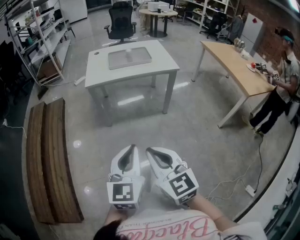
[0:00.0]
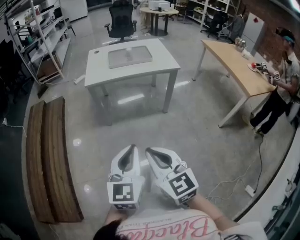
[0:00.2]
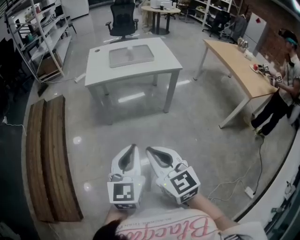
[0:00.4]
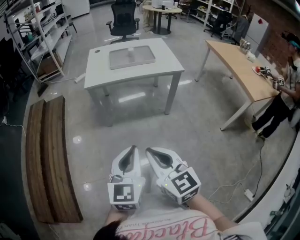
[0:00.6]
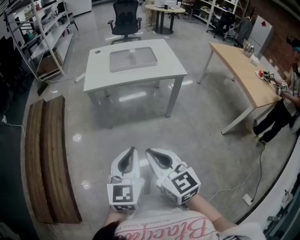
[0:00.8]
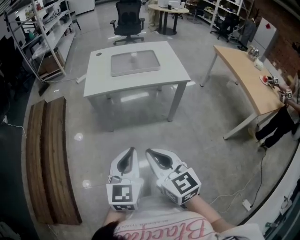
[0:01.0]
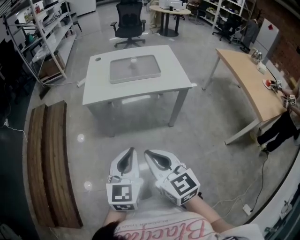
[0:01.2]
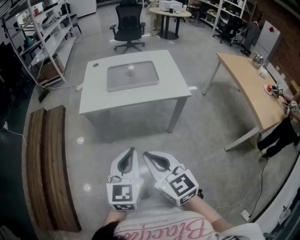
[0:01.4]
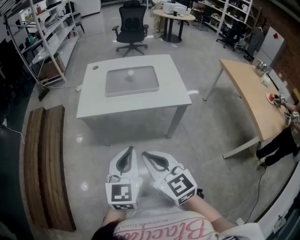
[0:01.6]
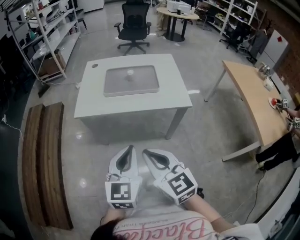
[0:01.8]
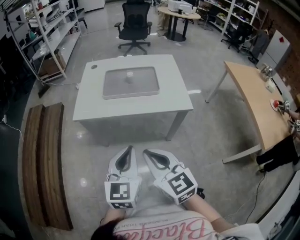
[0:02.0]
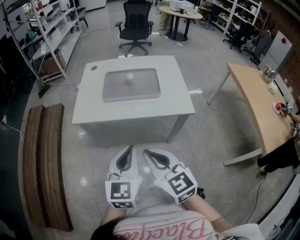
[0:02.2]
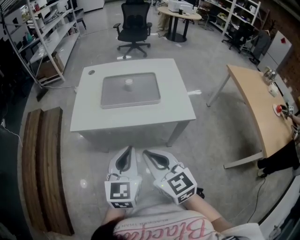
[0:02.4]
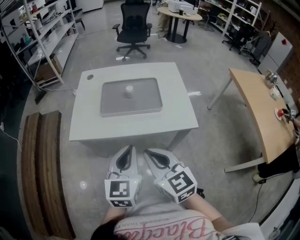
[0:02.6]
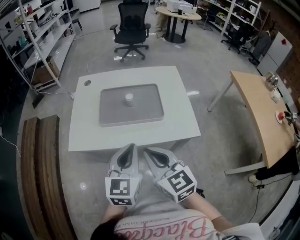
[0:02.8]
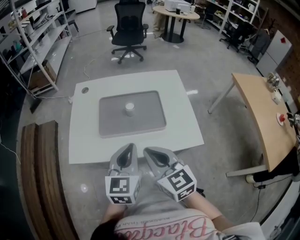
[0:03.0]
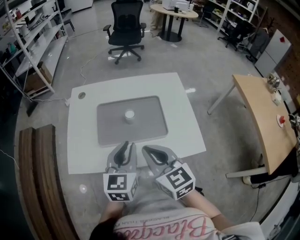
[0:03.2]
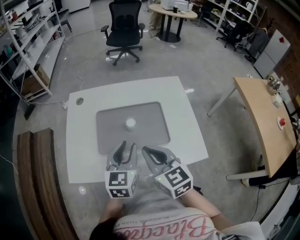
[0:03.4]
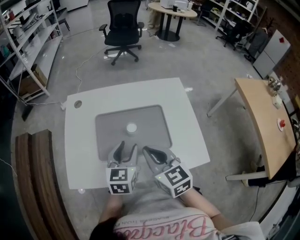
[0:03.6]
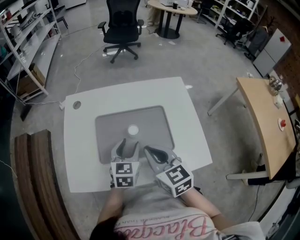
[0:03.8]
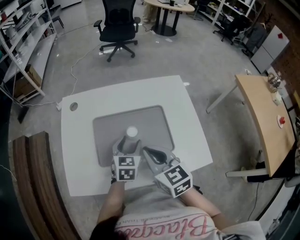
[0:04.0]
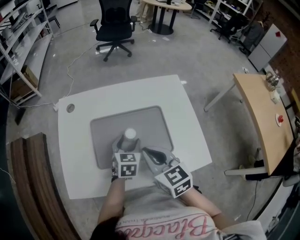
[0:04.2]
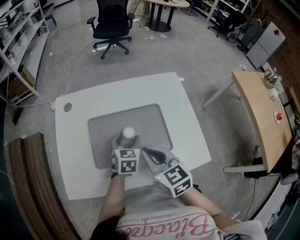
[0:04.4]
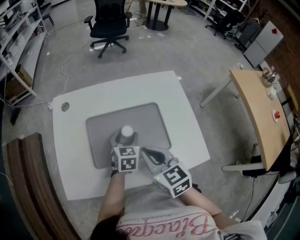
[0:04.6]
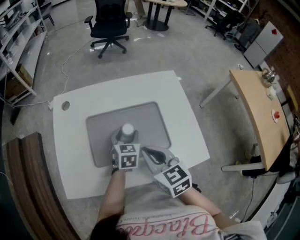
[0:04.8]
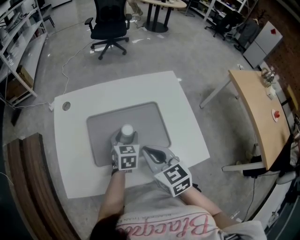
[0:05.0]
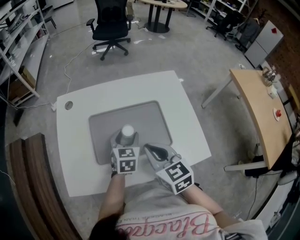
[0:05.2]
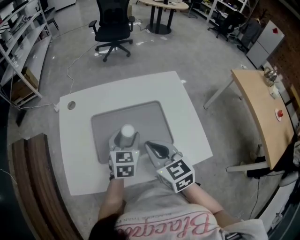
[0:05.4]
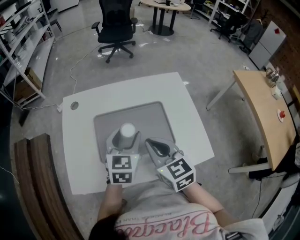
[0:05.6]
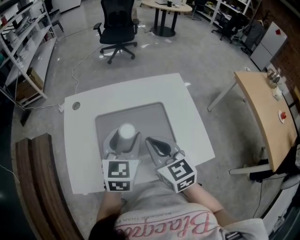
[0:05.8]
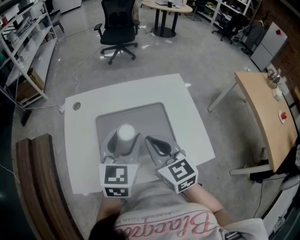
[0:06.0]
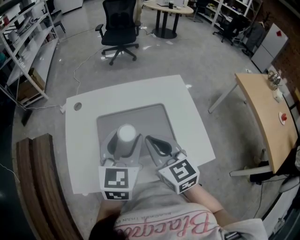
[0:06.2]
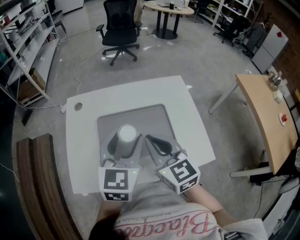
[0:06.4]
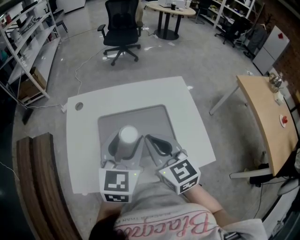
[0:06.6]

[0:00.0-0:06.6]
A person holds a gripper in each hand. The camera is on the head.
0:00.0 to 0:01.6: The two grippers go approximately 20 cm forward.
0:01.6 to 0:03.2: Both grippers move forward, roughly 30 cm.
0:03.2 to 0:05.0: The left gripper goes approximately 20 cm downward and forward, and opens, while the right gripper goes some 10 cm forward and downward.
0:05.0 to 0:06.6: The right gripper heads upward, covering approximately 10 cm. The left gripper goes about 20 cm upward, and rotates about 20 degrees.

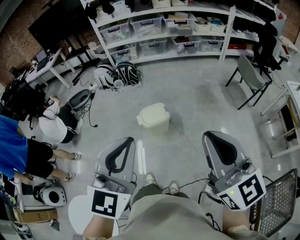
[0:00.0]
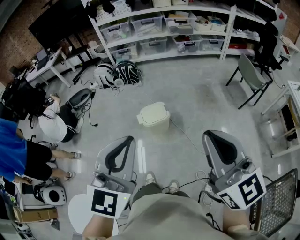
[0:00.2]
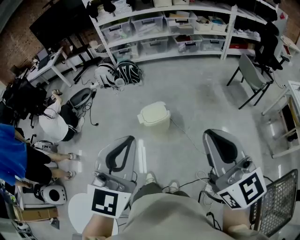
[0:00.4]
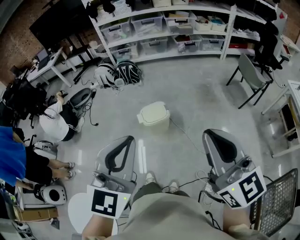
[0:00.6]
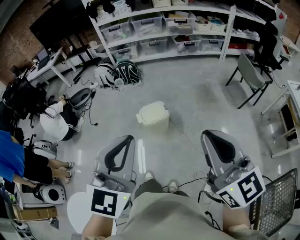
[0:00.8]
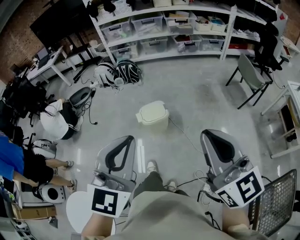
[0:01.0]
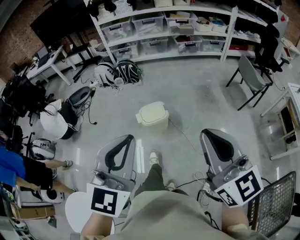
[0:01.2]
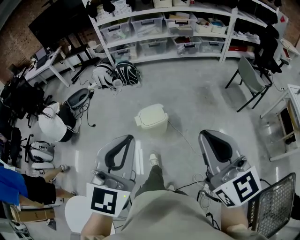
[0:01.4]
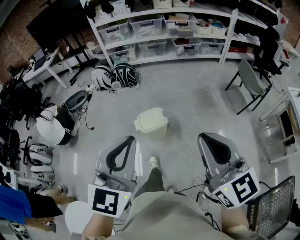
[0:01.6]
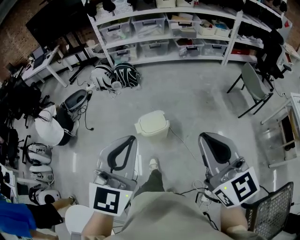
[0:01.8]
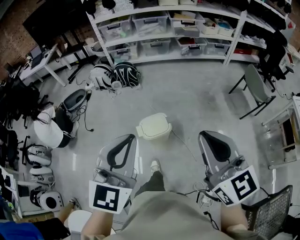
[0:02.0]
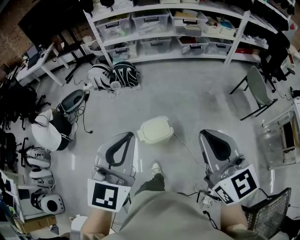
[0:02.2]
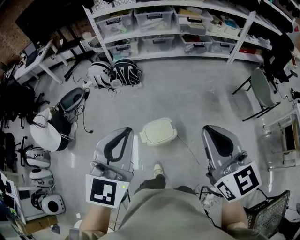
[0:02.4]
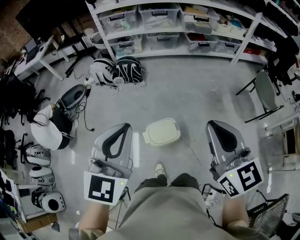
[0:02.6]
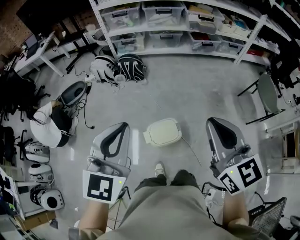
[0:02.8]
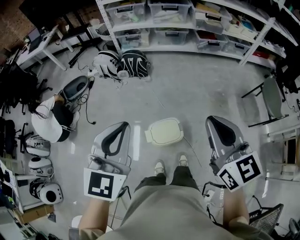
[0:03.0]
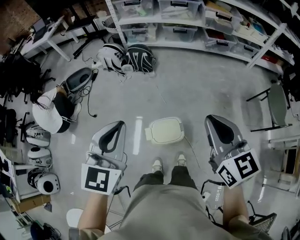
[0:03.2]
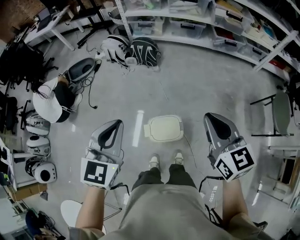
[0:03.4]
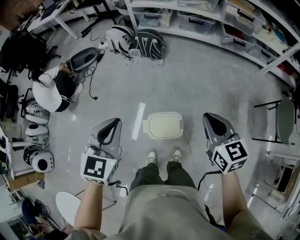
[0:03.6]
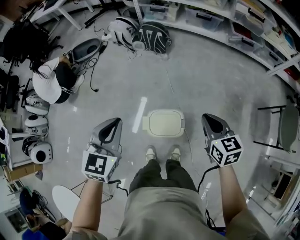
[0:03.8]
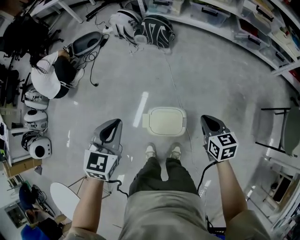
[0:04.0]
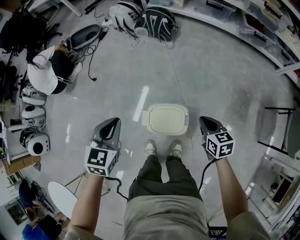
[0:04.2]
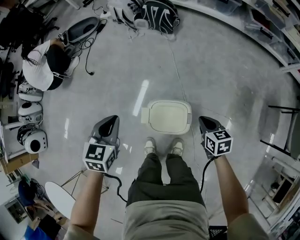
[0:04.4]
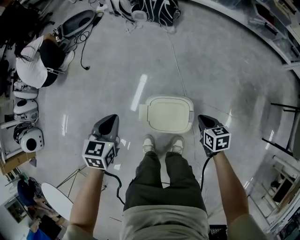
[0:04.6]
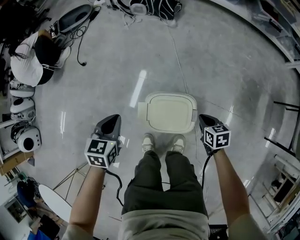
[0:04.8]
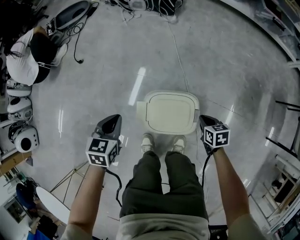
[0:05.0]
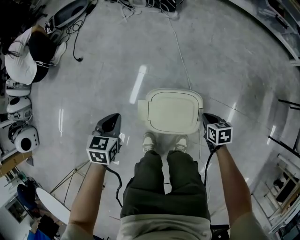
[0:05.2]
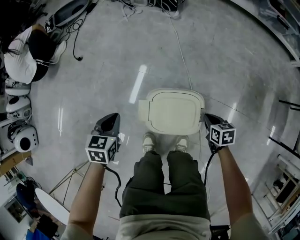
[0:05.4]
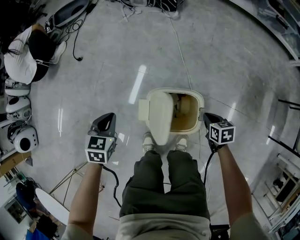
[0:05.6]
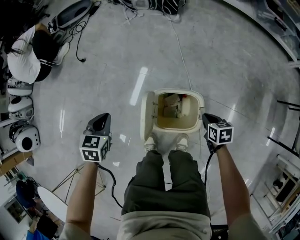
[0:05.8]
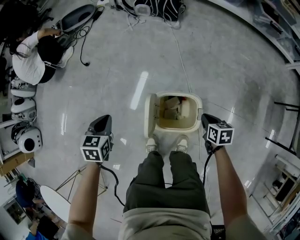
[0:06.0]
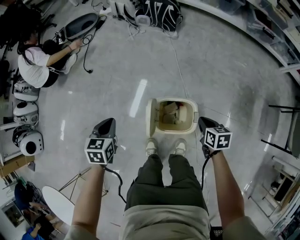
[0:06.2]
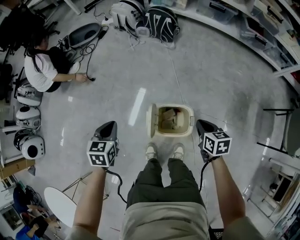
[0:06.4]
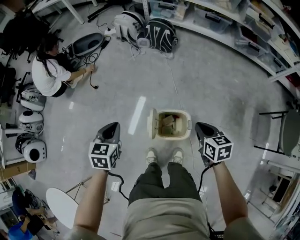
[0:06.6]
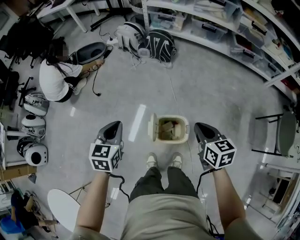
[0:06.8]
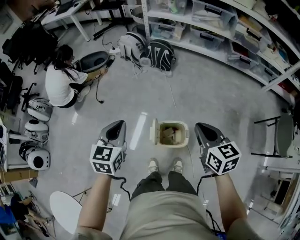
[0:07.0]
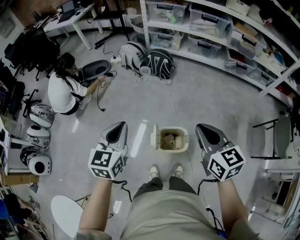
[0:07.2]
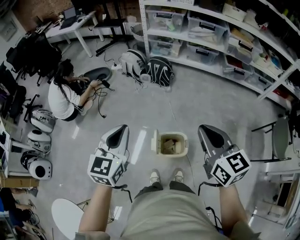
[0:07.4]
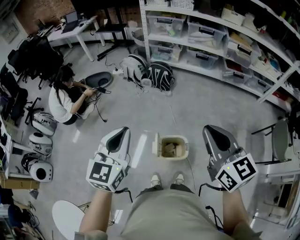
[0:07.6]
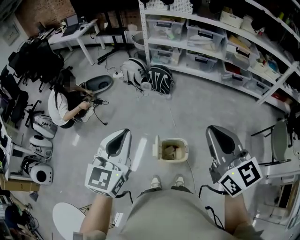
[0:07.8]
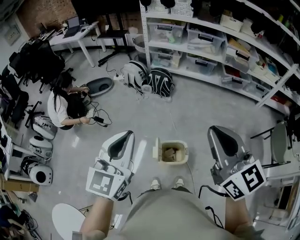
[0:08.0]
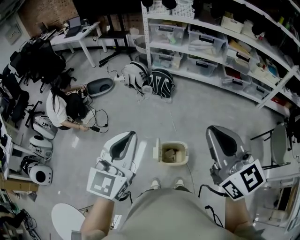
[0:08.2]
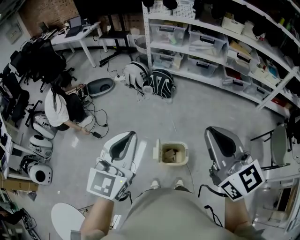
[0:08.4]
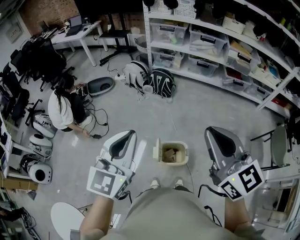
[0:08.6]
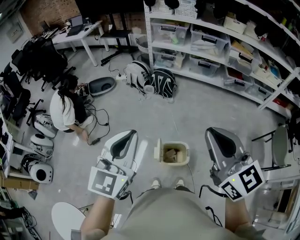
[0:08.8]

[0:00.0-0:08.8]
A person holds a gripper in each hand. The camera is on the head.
0:00.0 to 0:01.4: The grippers move only a little.
0:01.4 to 0:03.0: Both grippers travel together forward, some 35 cm.
0:03.0 to 0:04.4: The grippers both shift downward by roughly 50 cm. The right gripper angles its fingers downward, by some 40 degrees; the left gripper changes its angle by about 40 degrees.
0:04.4 to 0:05.8: The right gripper heads downward, covering approximately 20 cm; the left gripper shifts some 20 cm downward and to the left.
0:05.8 to 0:07.4: Both grippers travel together upward, some 60 cm. The left gripper angles its fingers upward, by roughly 40 degrees; the right gripper tips its fingers upward by approximately 50 degrees.
0:07.4 to 0:08.8: Both grippers move upward, about 10 cm.

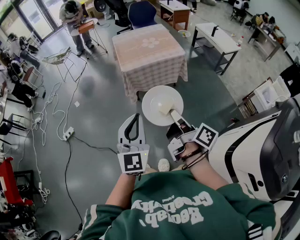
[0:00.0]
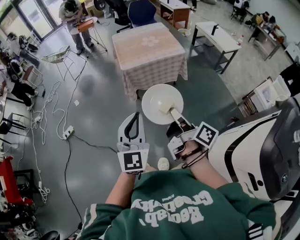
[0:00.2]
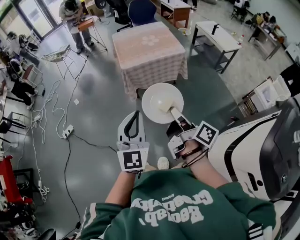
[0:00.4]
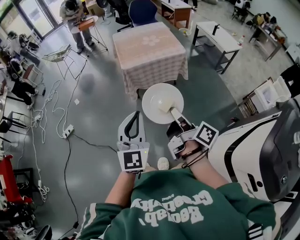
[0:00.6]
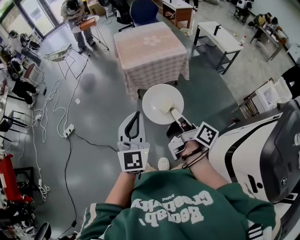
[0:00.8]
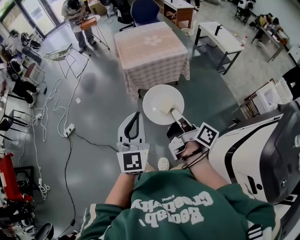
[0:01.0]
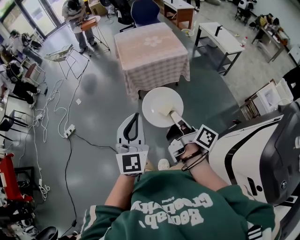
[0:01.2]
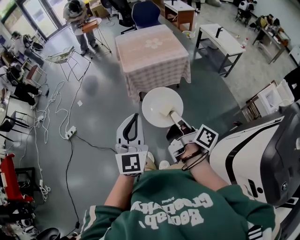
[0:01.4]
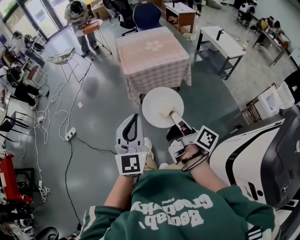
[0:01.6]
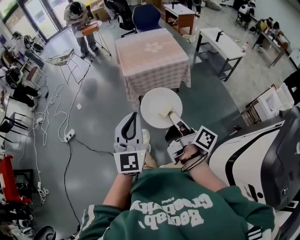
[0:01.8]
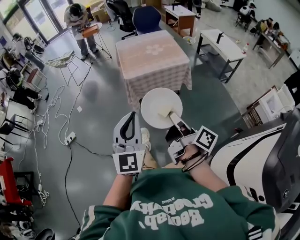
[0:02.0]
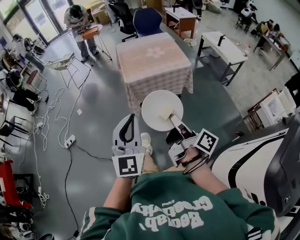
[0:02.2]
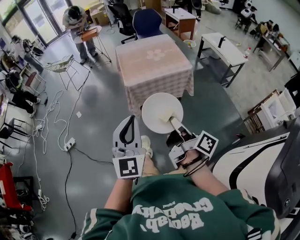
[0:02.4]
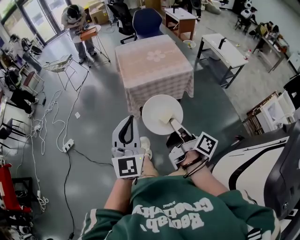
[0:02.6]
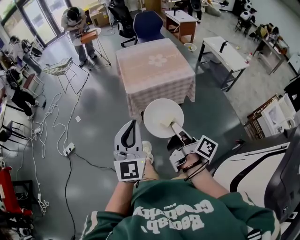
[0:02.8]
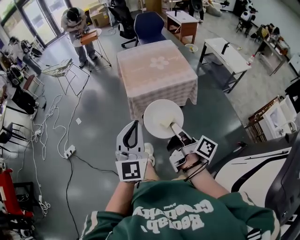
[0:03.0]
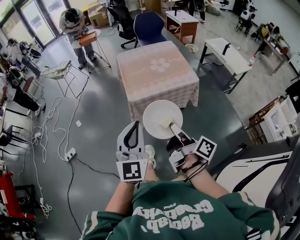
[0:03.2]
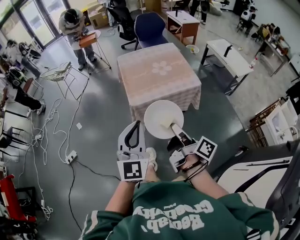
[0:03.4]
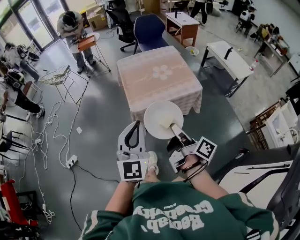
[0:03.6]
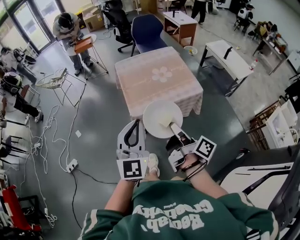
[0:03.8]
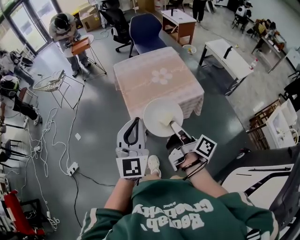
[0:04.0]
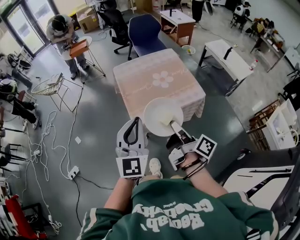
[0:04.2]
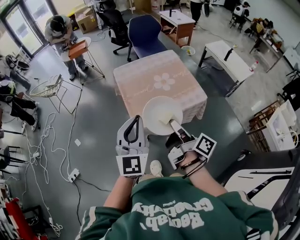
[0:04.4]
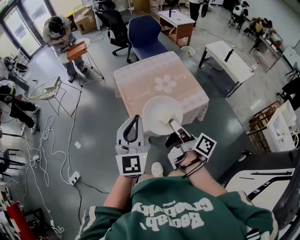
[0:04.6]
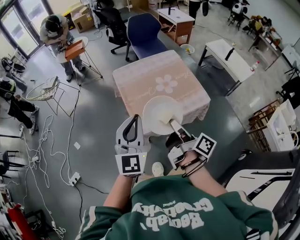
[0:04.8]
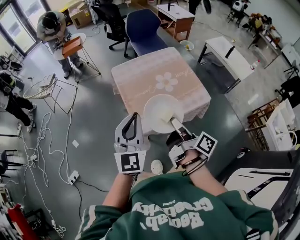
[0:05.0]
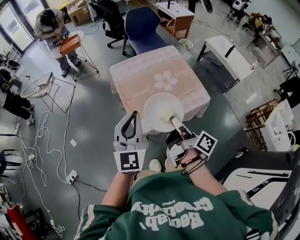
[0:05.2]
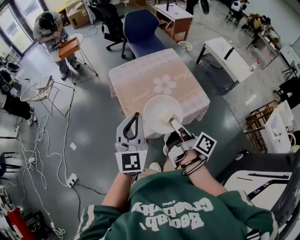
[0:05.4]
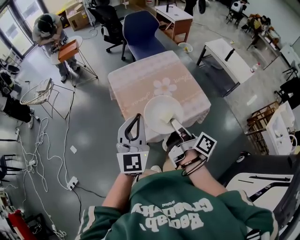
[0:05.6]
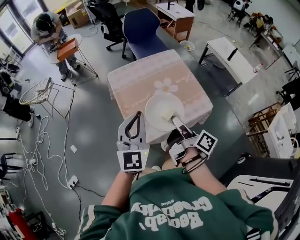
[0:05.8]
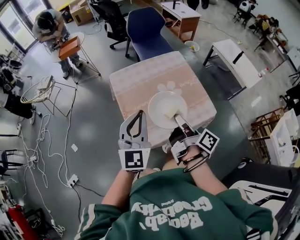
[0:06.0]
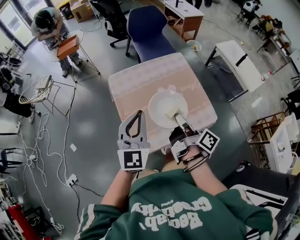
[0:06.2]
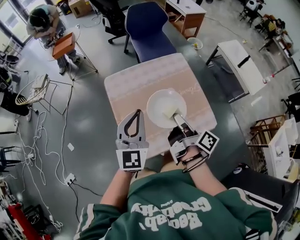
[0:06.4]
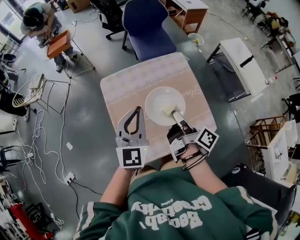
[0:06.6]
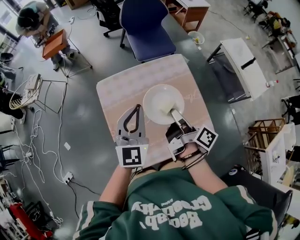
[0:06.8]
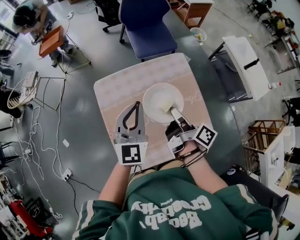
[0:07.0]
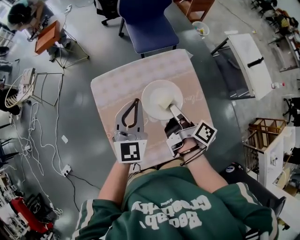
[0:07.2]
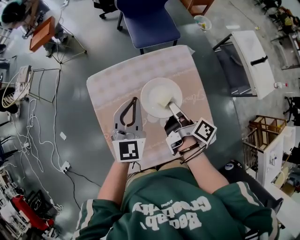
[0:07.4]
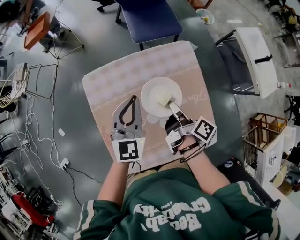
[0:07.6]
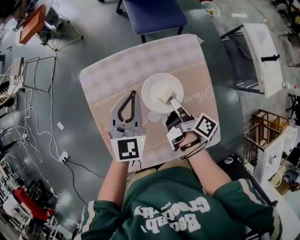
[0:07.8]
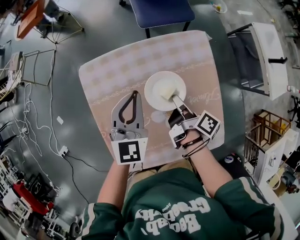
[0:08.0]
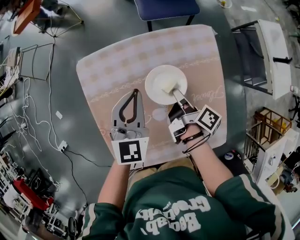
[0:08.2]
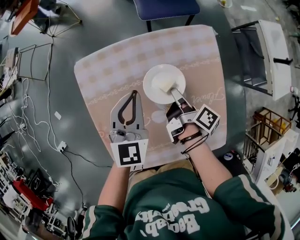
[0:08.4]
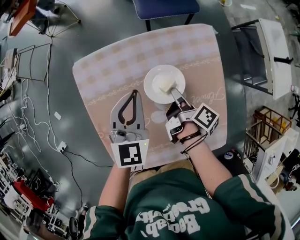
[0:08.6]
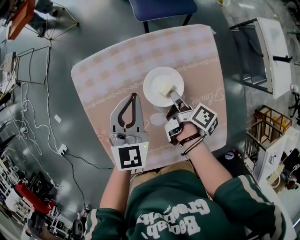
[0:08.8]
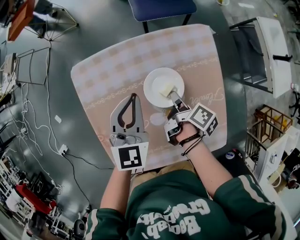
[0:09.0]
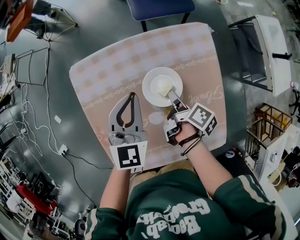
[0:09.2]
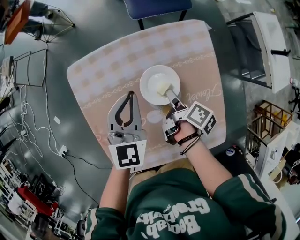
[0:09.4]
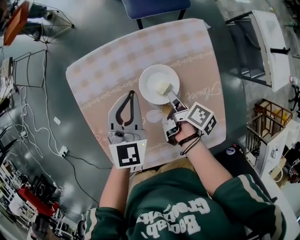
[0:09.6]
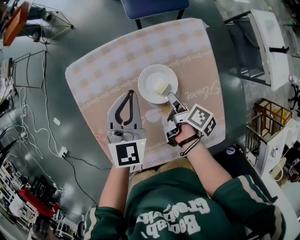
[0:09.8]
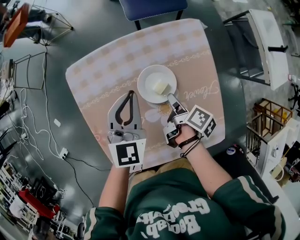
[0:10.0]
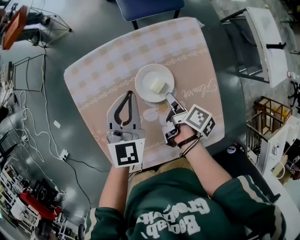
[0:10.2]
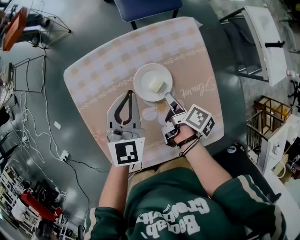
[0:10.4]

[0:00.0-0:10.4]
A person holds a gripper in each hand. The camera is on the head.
0:01.4 to 0:03.0: The left gripper ends up some 20 cm from where it was.
0:03.0 to 0:04.4: The left gripper ends up about 30 cm from where it was.
0:04.4 to 0:06.0: The left gripper moves roughly 20 cm.
0:06.0 to 0:07.4: The left gripper changes place by roughly 35 cm.
0:07.4 to 0:09.0: The left gripper heads downward, covering roughly 10 cm.
